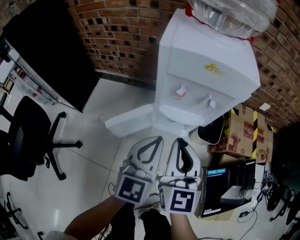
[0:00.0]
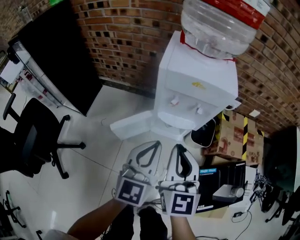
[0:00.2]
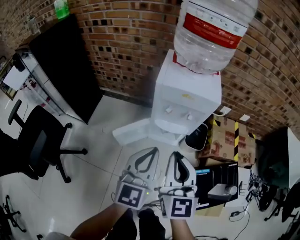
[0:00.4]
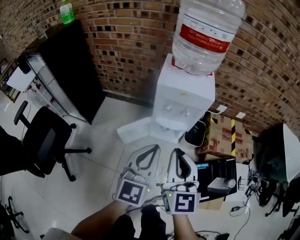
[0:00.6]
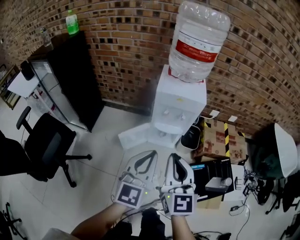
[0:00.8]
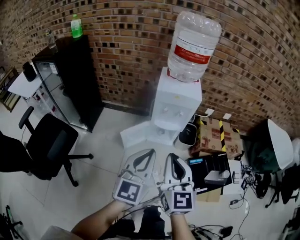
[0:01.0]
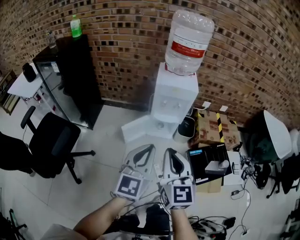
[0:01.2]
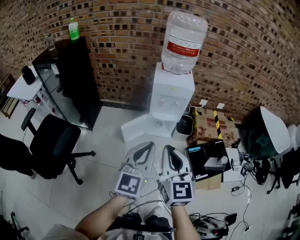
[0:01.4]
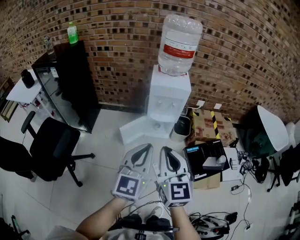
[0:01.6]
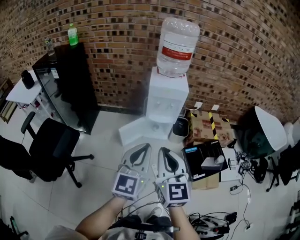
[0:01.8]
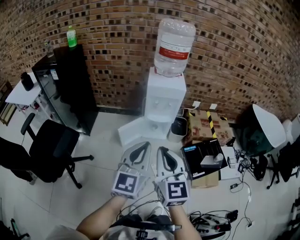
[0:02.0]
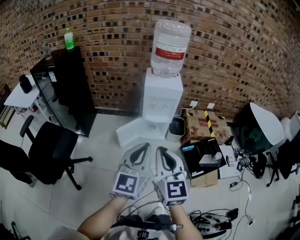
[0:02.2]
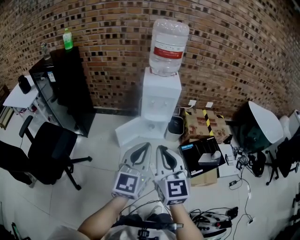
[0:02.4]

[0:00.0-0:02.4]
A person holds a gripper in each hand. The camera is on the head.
0:00.0 to 0:01.2: Both grippers move backward and upward, approximately 40 cm.
0:01.2 to 0:02.4: Both grippers travel together backward, about 5 cm.

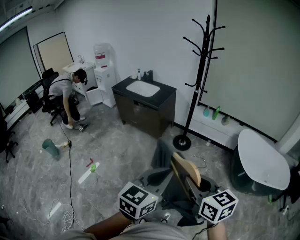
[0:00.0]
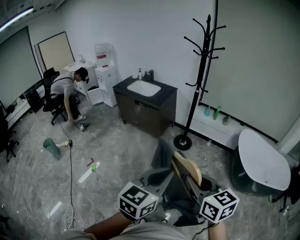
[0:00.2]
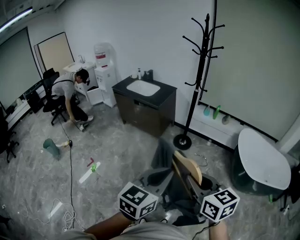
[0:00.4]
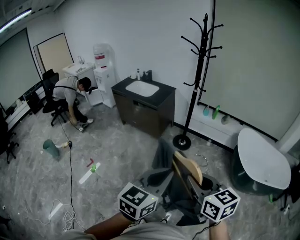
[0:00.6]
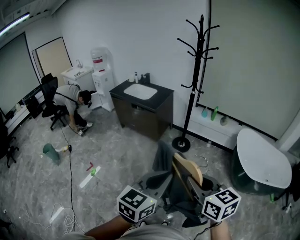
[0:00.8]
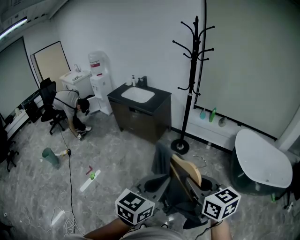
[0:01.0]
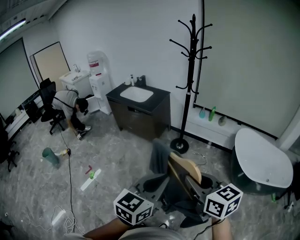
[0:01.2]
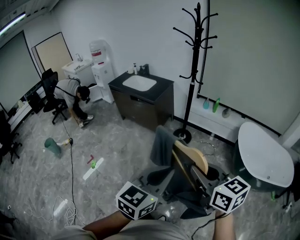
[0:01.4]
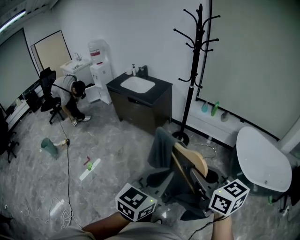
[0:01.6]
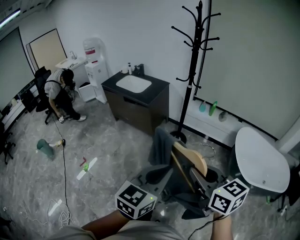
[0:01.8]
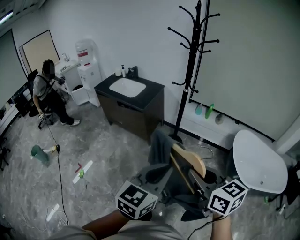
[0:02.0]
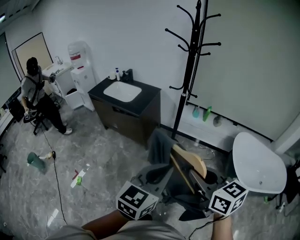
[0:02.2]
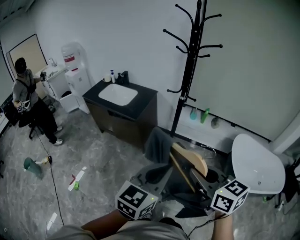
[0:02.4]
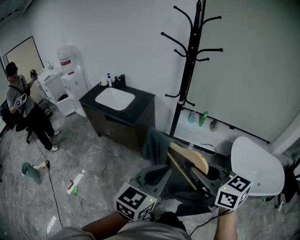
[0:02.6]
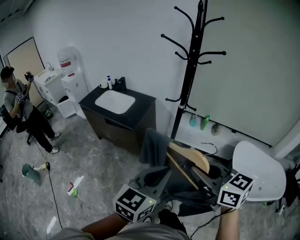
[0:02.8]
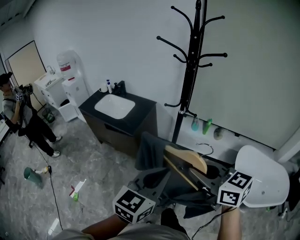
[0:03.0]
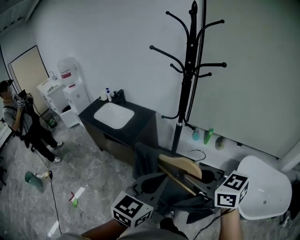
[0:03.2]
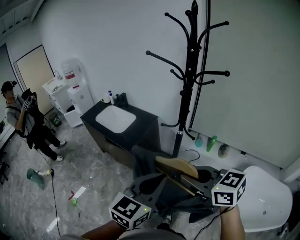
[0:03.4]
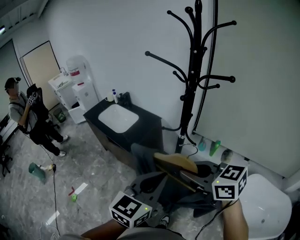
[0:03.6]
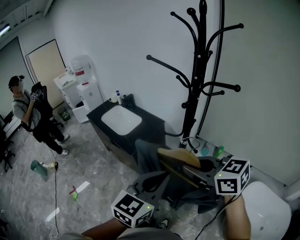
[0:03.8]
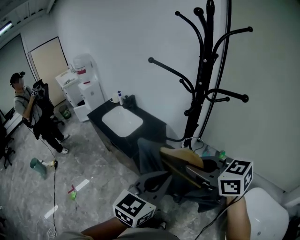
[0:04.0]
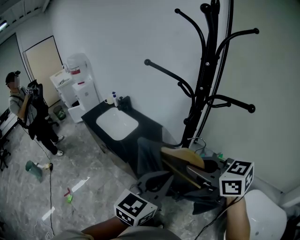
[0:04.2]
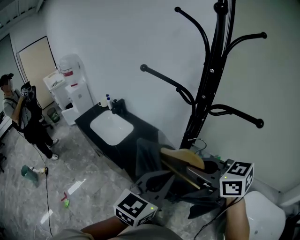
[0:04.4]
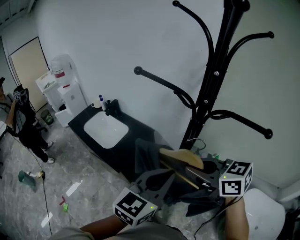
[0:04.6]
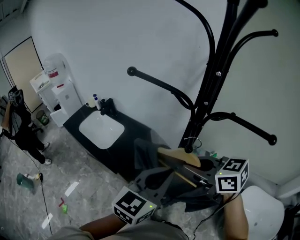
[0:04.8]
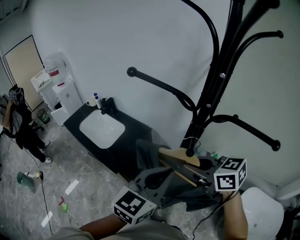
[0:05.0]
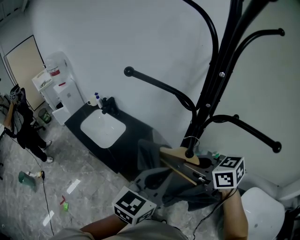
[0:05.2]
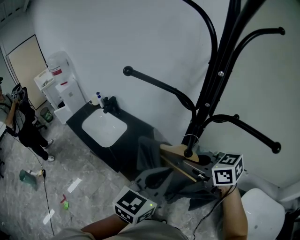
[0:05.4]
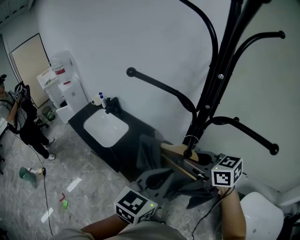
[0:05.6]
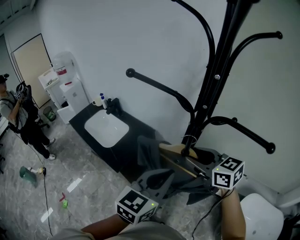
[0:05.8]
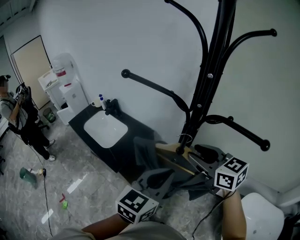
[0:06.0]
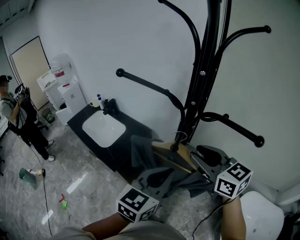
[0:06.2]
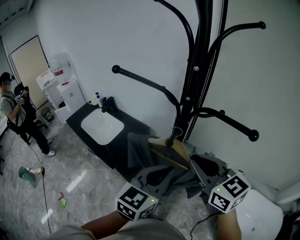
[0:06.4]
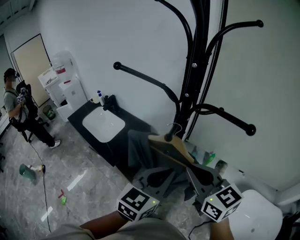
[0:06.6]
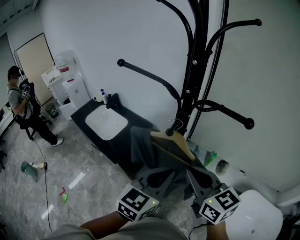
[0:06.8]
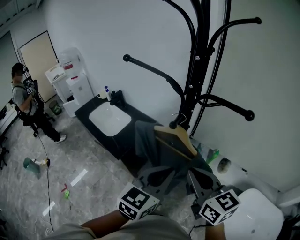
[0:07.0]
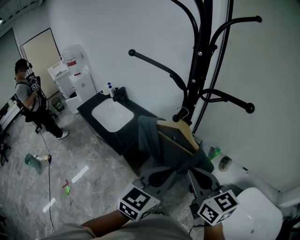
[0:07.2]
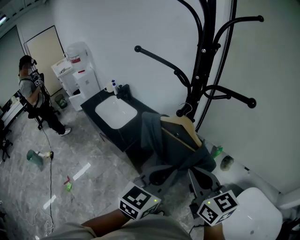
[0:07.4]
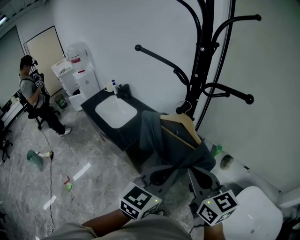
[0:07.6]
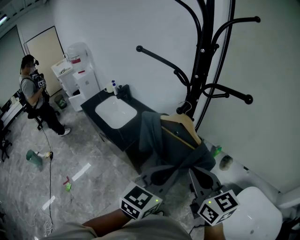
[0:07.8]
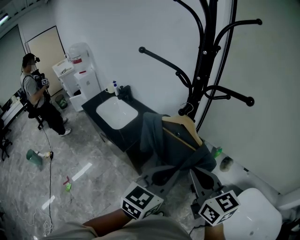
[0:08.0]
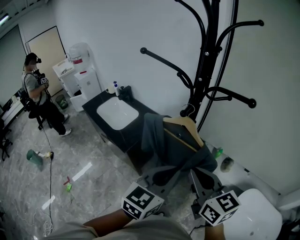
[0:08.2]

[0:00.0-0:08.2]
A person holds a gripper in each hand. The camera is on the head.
0:00.0 to 0:01.6: Both grippers travel together to the right and forward, about 10 cm.
0:01.6 to 0:03.2: Both grippers are carried forward, some 40 cm.
0:03.2 to 0:05.0: Both grippers travel together forward, approximately 35 cm.
0:05.0 to 0:06.6: The right gripper shifts about 10 cm backward and to the right, and rotates roughly 30 degrees. The left gripper moves to the right, about 5 cm.
0:06.6 to 0:08.2: Both grippers travel together backward, roughly 10 cm.

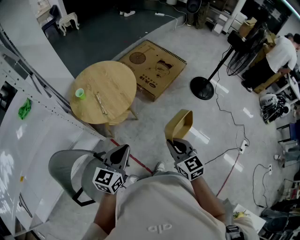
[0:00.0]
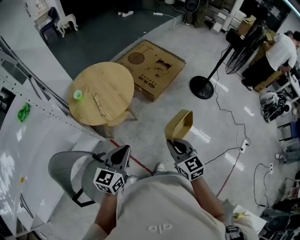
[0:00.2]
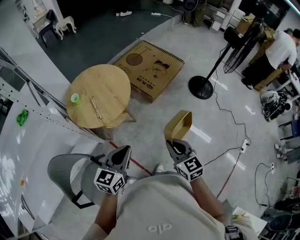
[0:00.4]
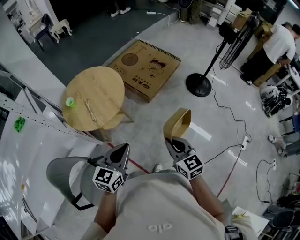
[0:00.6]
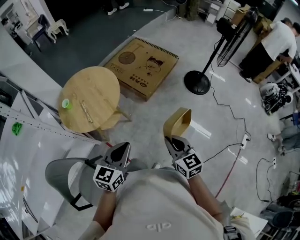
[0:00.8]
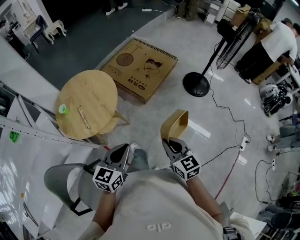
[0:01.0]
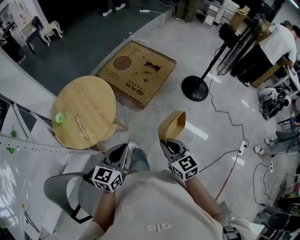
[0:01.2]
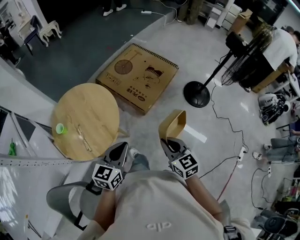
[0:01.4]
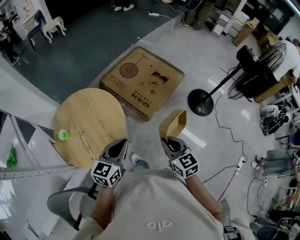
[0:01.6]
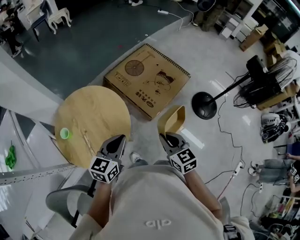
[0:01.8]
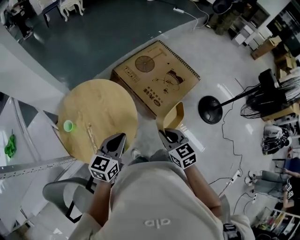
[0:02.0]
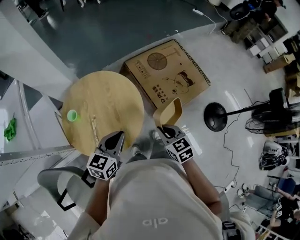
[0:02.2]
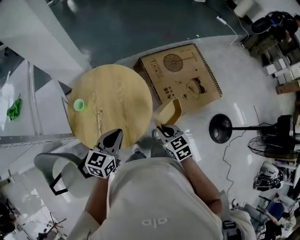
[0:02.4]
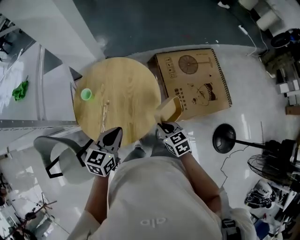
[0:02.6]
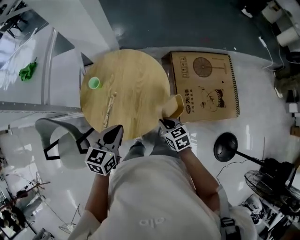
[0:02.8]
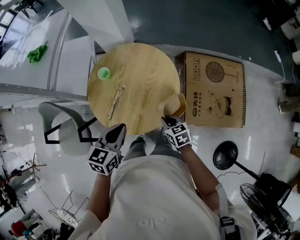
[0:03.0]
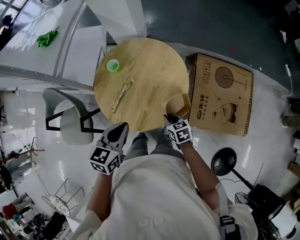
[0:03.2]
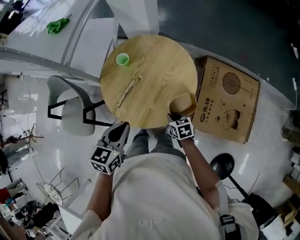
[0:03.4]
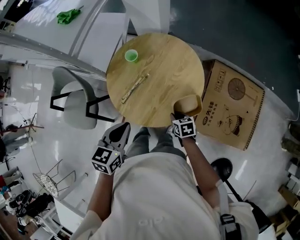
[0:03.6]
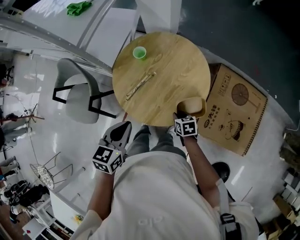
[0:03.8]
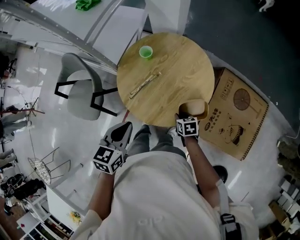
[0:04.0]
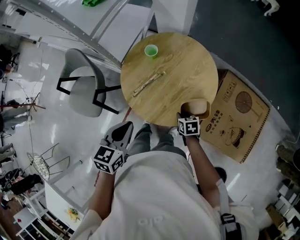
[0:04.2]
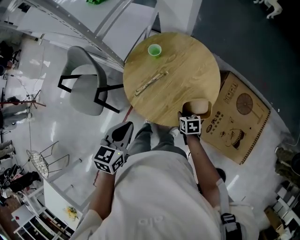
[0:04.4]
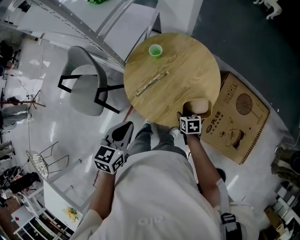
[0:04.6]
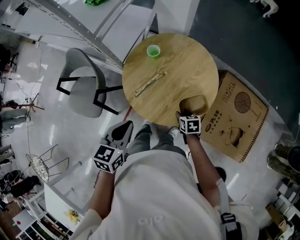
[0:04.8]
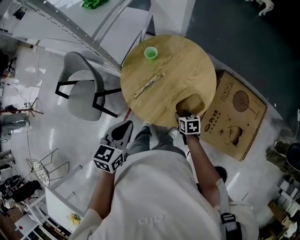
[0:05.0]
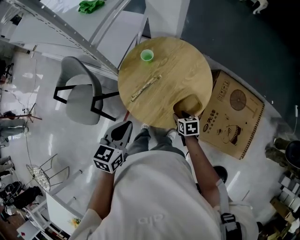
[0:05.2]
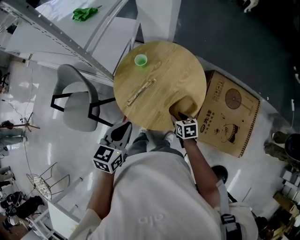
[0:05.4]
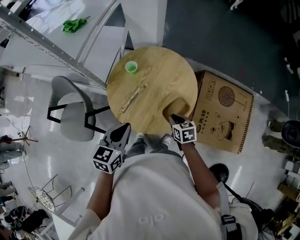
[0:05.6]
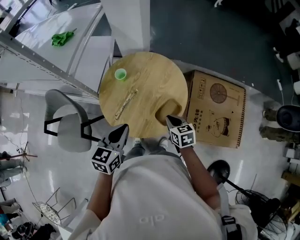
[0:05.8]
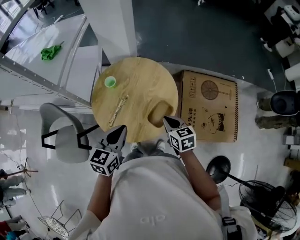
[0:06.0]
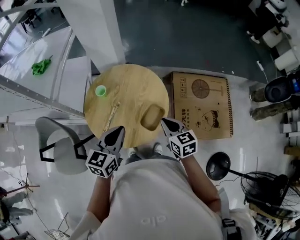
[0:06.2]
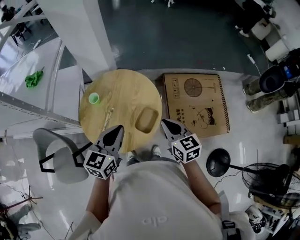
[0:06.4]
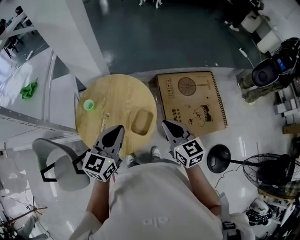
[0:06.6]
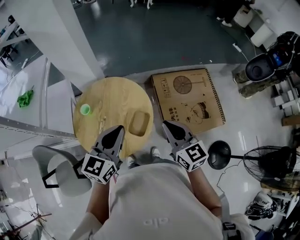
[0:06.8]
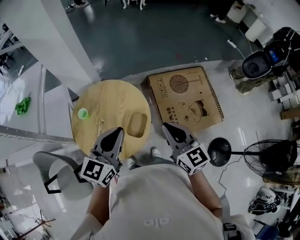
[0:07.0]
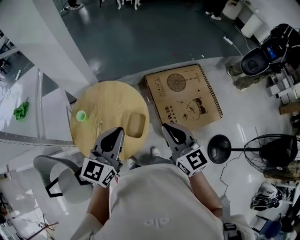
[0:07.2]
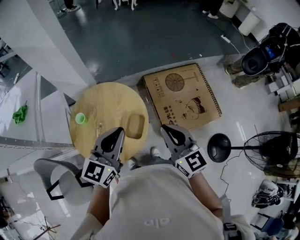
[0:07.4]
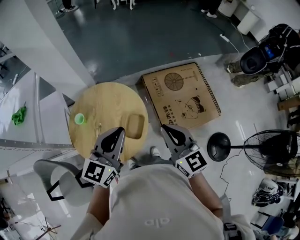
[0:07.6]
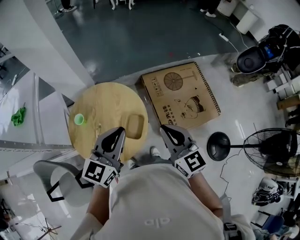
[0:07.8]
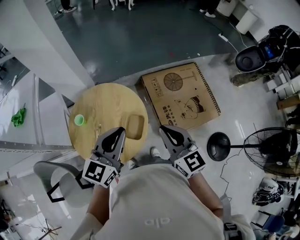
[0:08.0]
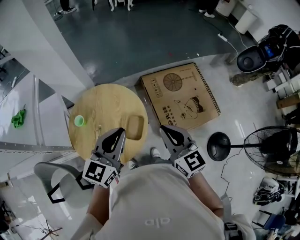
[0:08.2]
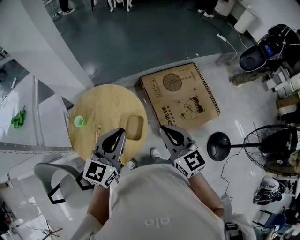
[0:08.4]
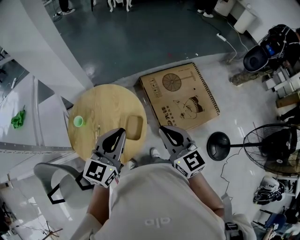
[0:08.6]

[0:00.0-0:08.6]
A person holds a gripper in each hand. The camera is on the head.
0:00.0 to 0:01.4: The right gripper travels forward by roughly 30 cm. The left gripper travels forward and to the right by roughly 30 cm.
0:01.4 to 0:02.8: The left gripper ends up about 30 cm from where it was, and rotates some 50 degrees, while the right gripper changes place by approximately 40 cm, and swivels roughly 60 degrees.
0:02.8 to 0:04.4: The left gripper changes place by approximately 15 cm, and turns by approximately 30 degrees, while the right gripper shifts approximately 10 cm downward, and swivels roughly 20 degrees.
0:04.4 to 0:05.8: The left gripper is displaced to the right by about 5 cm. The right gripper is displaced upward by roughly 15 cm, and opens, then closes again.
0:05.8 to 0:07.2: The right gripper moves upward, roughly 25 cm, and points its fingers some 30 degrees further upward. Meanwhile the left gripper shifts by roughly 20 cm, and rotates some 40 degrees.
0:07.2 to 0:08.6: The grippers stay close to where they were, moving slightly.

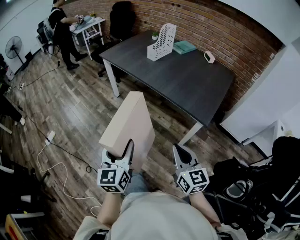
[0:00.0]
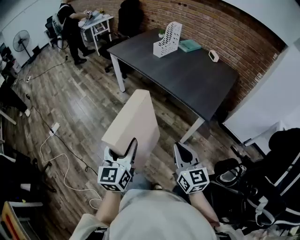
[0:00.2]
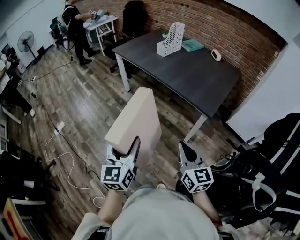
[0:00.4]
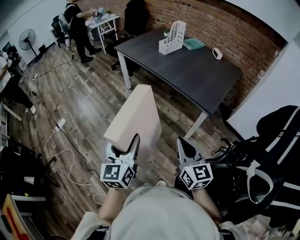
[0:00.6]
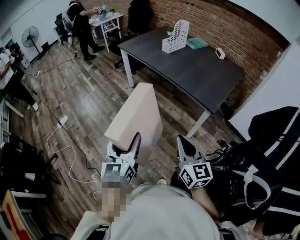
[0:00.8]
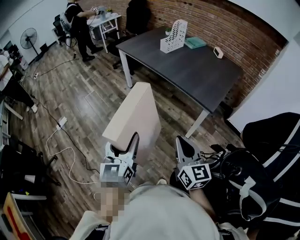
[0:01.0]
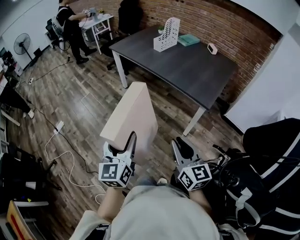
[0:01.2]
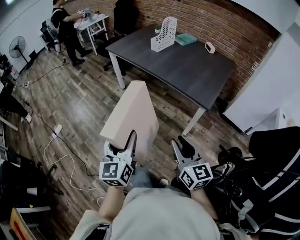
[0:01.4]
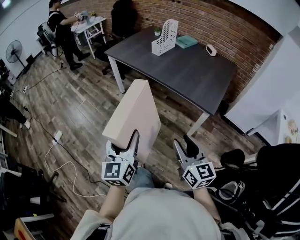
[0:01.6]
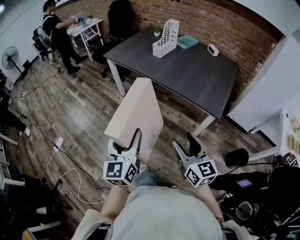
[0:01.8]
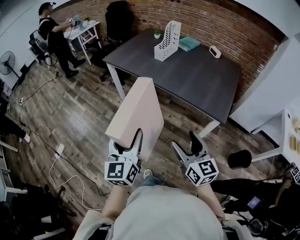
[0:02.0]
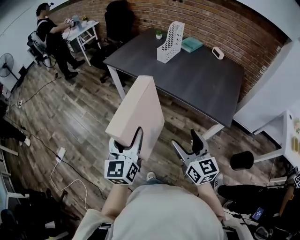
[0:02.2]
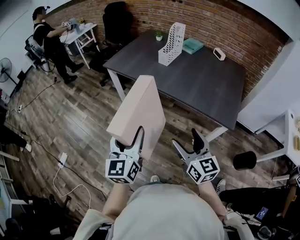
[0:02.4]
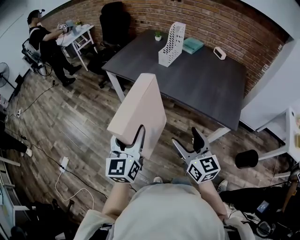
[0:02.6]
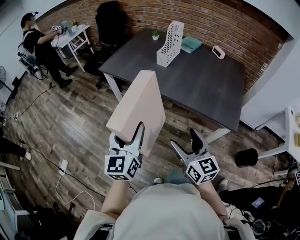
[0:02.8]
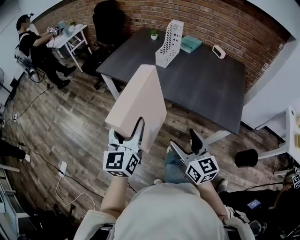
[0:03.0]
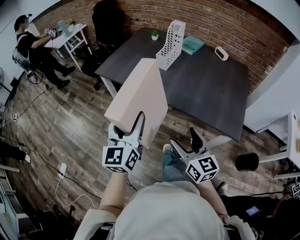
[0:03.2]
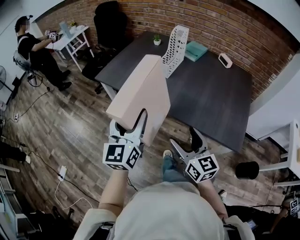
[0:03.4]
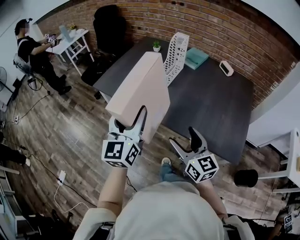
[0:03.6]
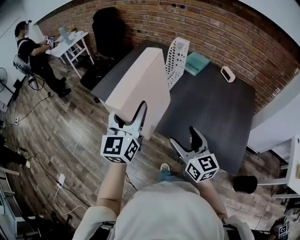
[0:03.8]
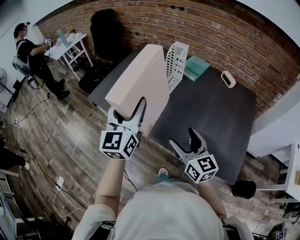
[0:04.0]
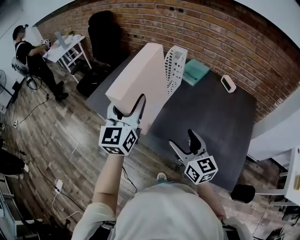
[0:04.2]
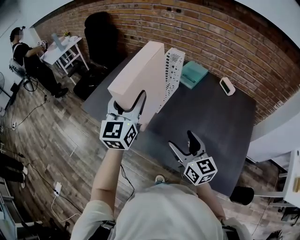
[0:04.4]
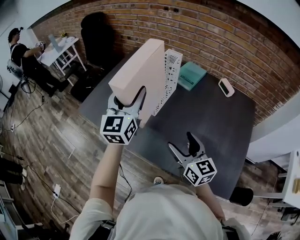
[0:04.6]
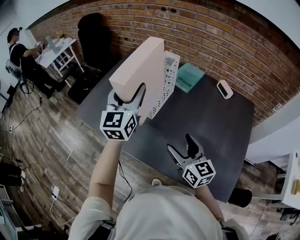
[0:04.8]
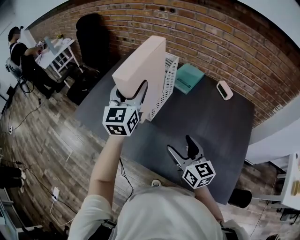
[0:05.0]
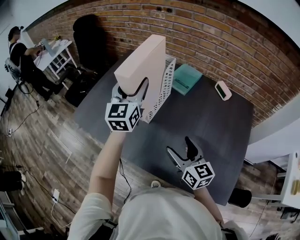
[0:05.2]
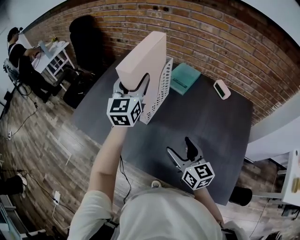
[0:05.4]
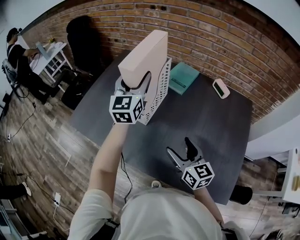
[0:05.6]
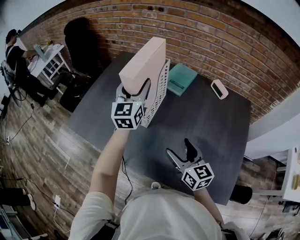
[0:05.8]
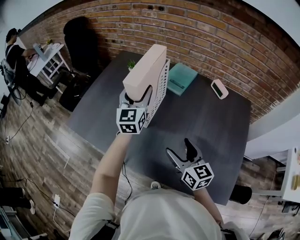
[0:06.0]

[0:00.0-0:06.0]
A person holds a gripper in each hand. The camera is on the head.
0:00.0 to 0:01.6: The left gripper moves about 10 cm backward and comes back; the right gripper moves roughly 10 cm backward and comes back, and opens its fingers.
0:01.6 to 0:03.0: The left gripper goes about 30 cm forward. Meanwhile the right gripper travels forward and to the left by about 30 cm, and opens its fingers.
0:03.0 to 0:04.4: The two grippers go some 35 cm forward.
0:04.4 to 0:06.0: The right gripper heads forward and to the right, covering about 10 cm. The left gripper goes about 20 cm forward, to the right and downward.
